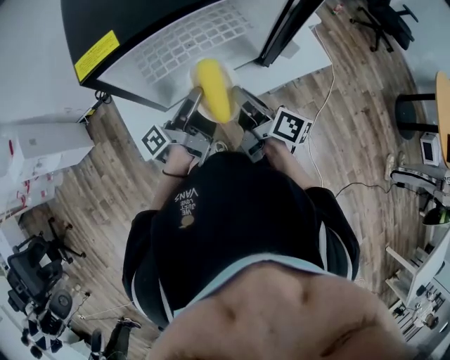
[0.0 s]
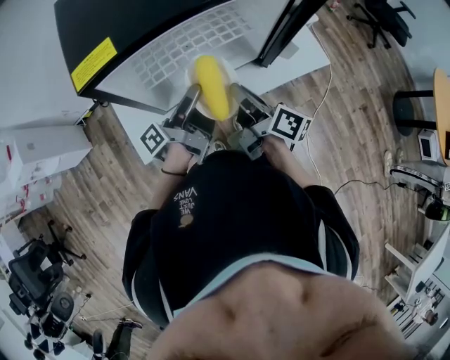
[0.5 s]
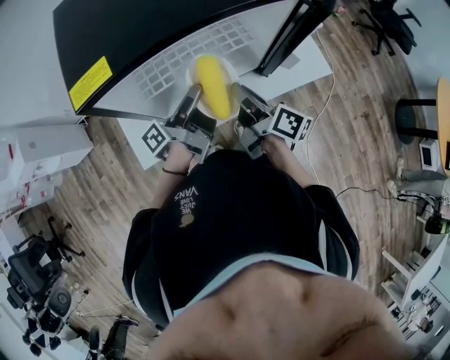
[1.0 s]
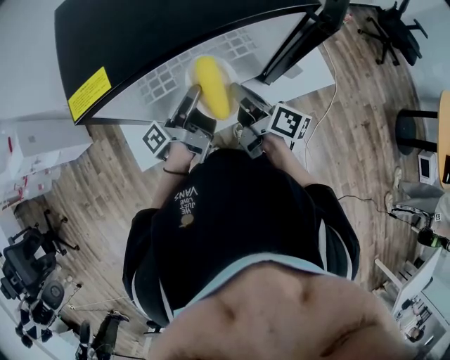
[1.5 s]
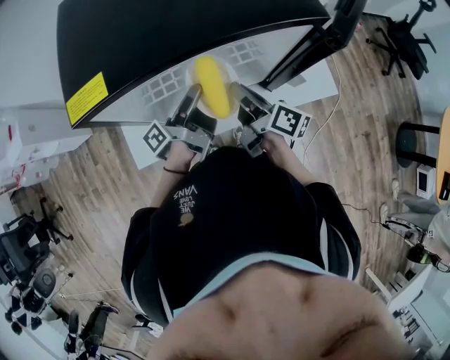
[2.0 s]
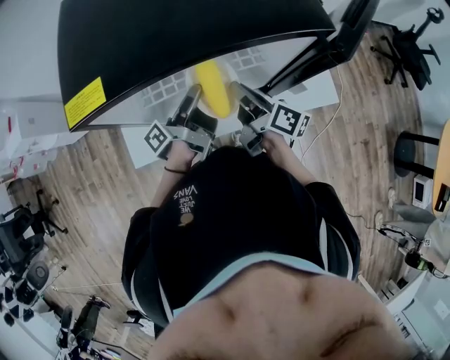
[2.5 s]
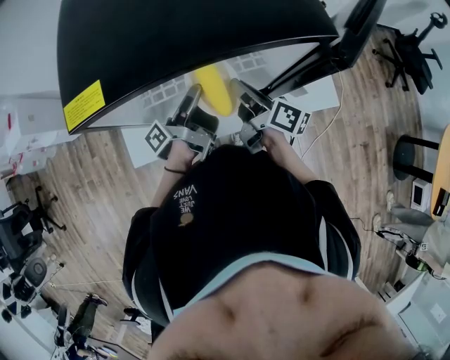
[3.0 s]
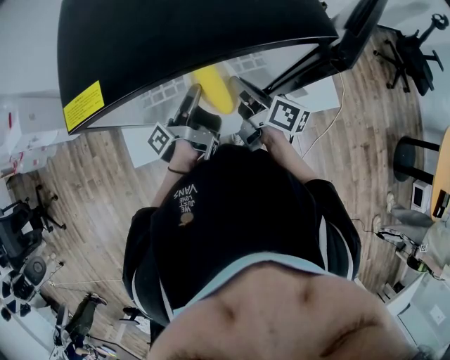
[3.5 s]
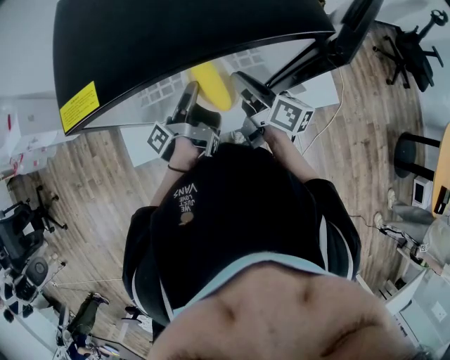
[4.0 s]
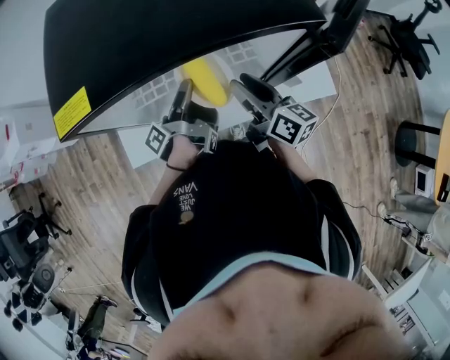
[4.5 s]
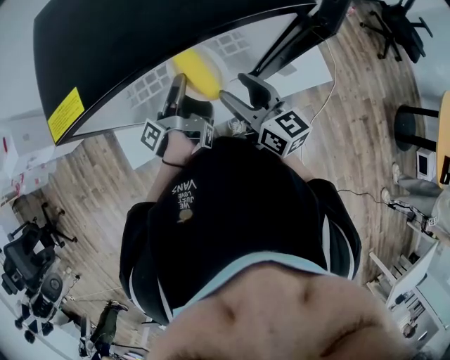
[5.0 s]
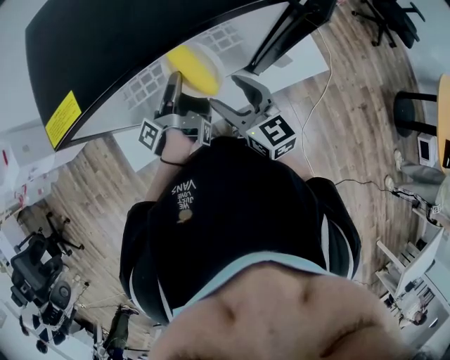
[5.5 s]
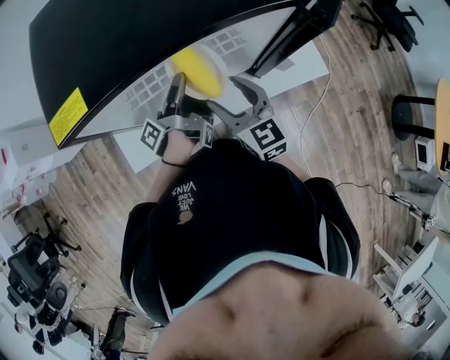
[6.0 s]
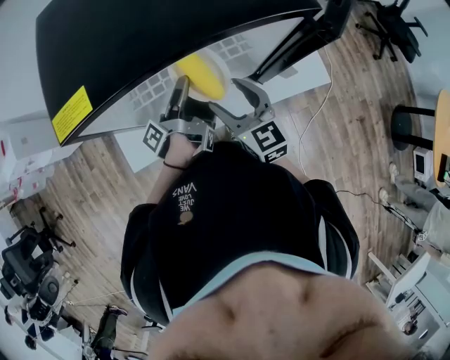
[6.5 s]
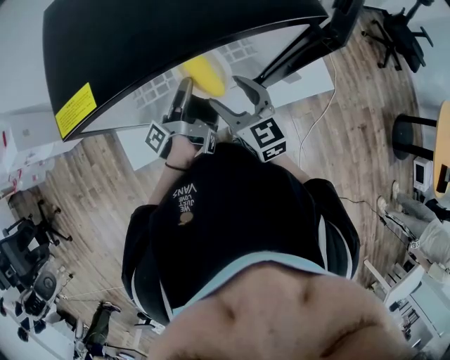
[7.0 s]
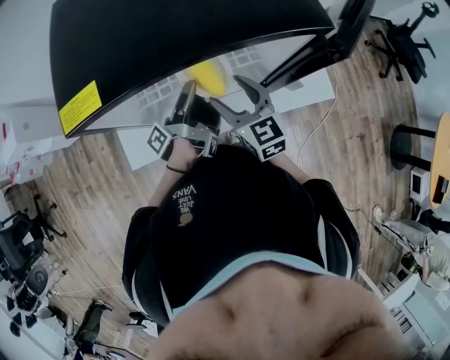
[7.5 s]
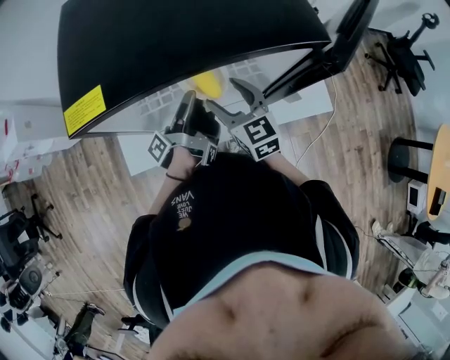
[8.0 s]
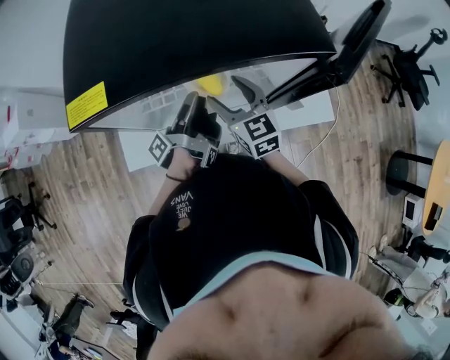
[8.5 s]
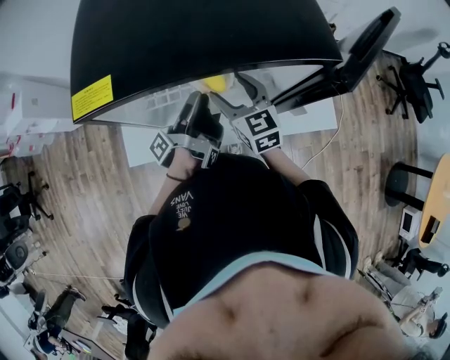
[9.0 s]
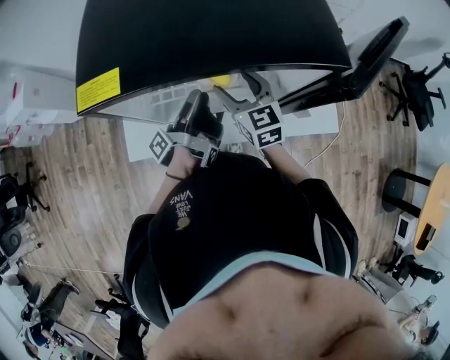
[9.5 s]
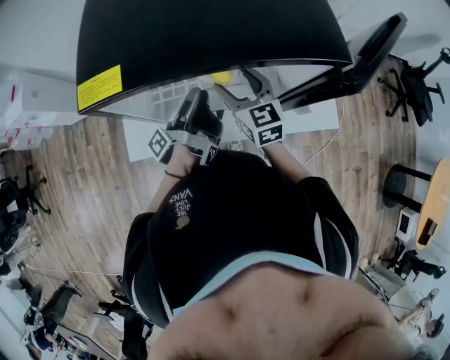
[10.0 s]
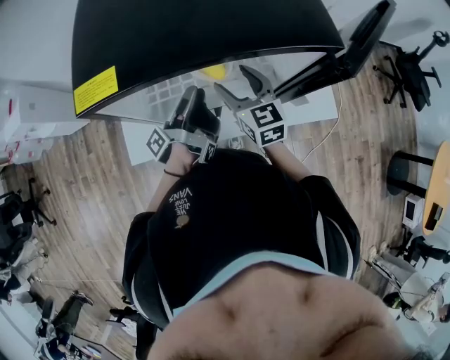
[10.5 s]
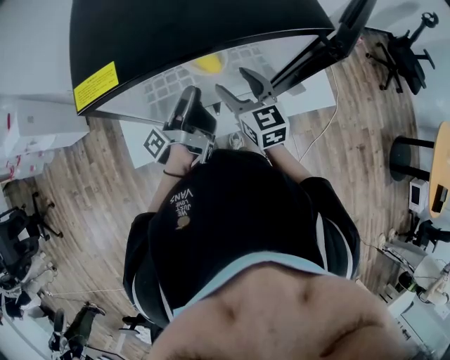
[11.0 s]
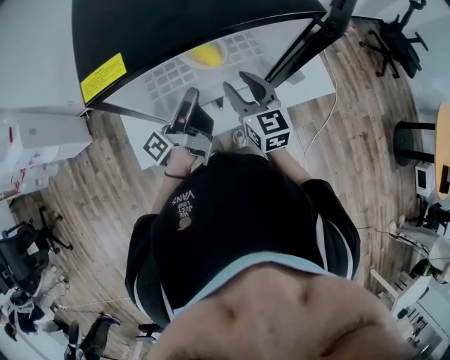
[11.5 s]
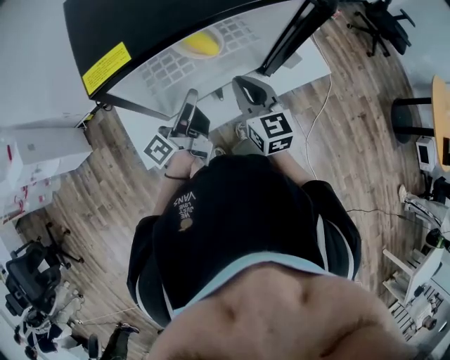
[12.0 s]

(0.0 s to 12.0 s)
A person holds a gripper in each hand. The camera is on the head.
0.0 s - 2.0 s: The right gripper changes place by some 10 cm.
4.0 s - 6.0 s: The right gripper moves about 10 cm, twists roughly 50 degrees counterclockwise, seen from behind, and opens.
6.0 s - 8.0 s: The right gripper ends up some 5 cm from where it was.
10.0 s - 12.0 s: The right gripper shifts by approximately 10 cm, turns by about 20 degrees, and closes.

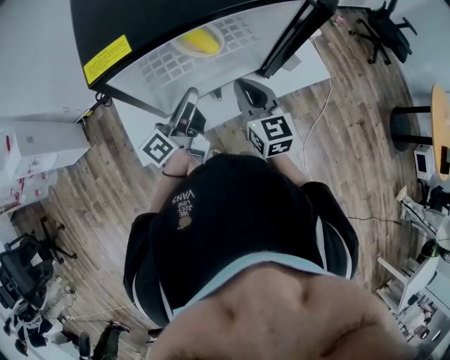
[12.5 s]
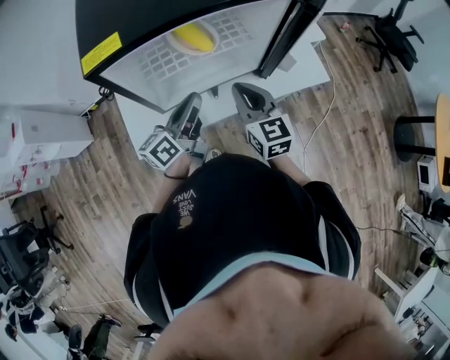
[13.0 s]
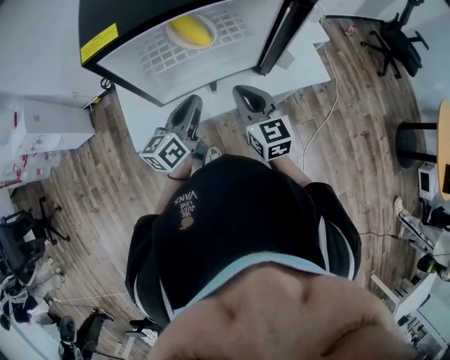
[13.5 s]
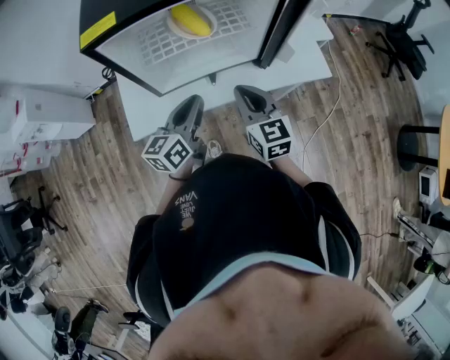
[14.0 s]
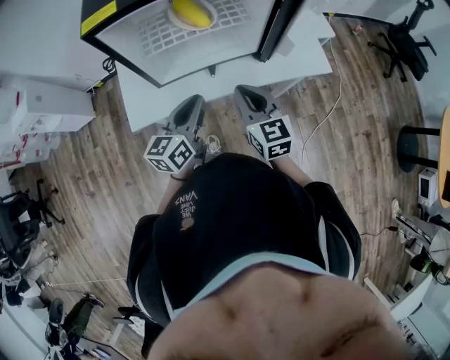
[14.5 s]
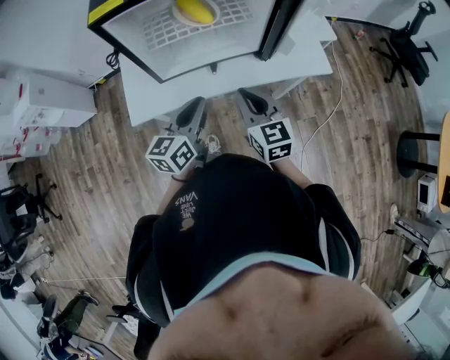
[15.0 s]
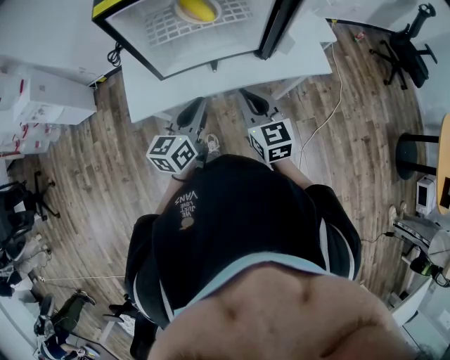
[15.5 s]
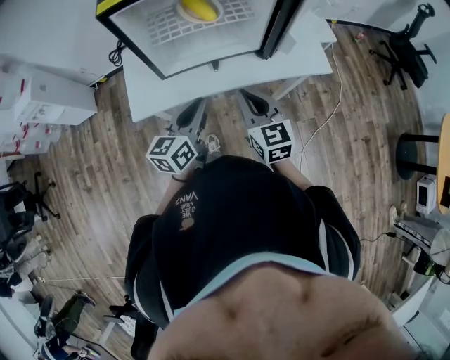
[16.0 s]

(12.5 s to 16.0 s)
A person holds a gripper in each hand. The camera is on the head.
12.5 s - 14.5 s: The right gripper ends up about 10 cm from where it was.

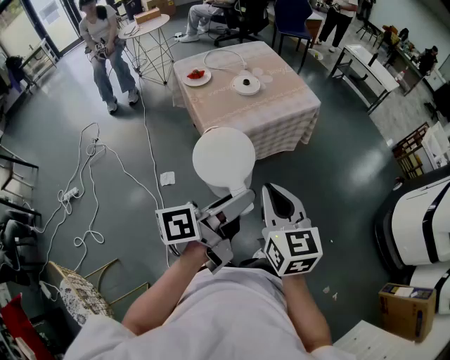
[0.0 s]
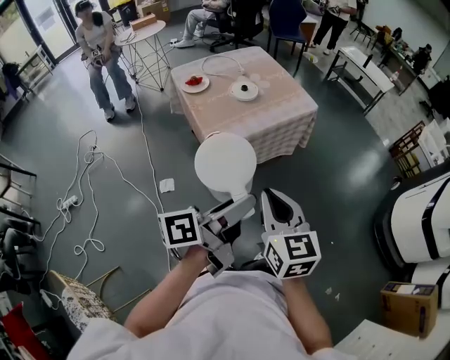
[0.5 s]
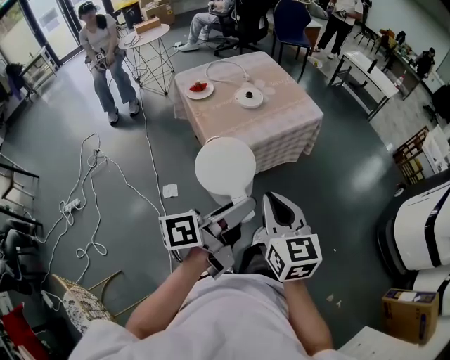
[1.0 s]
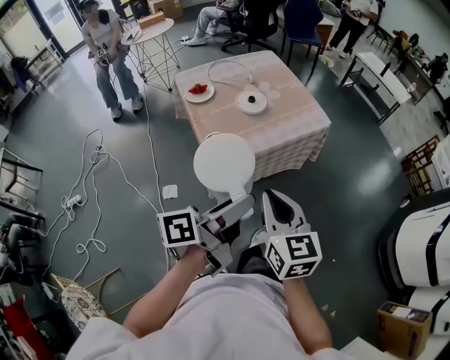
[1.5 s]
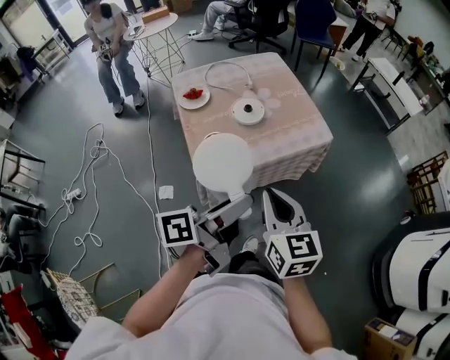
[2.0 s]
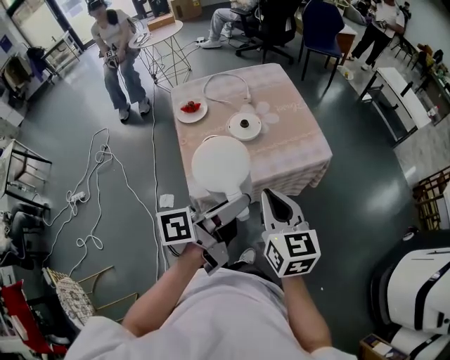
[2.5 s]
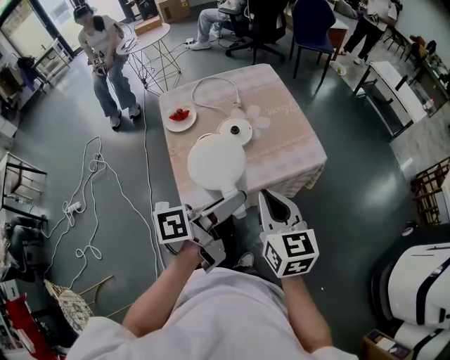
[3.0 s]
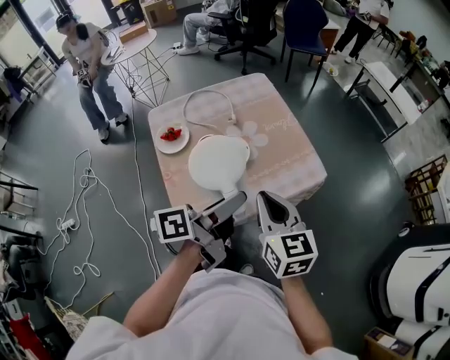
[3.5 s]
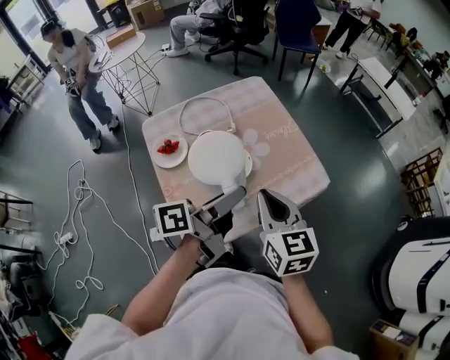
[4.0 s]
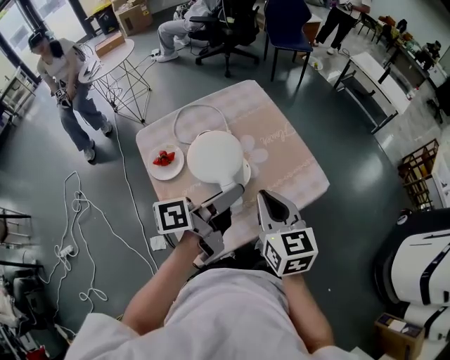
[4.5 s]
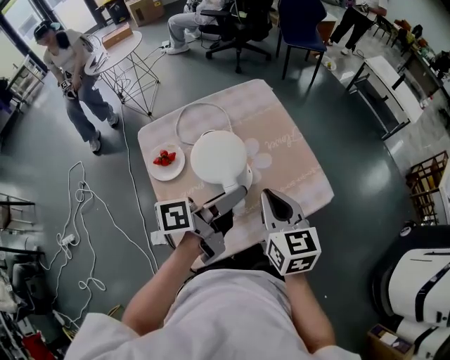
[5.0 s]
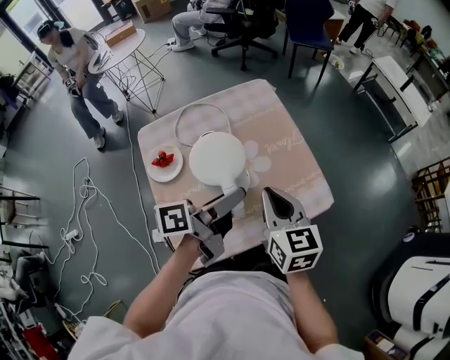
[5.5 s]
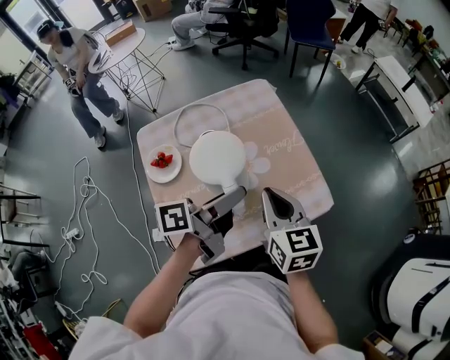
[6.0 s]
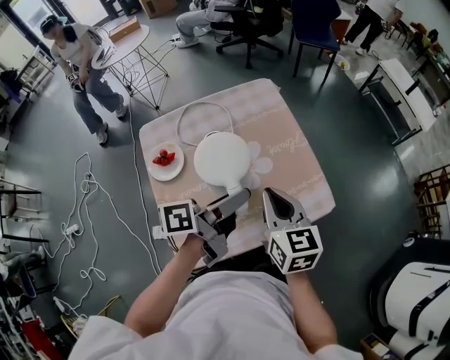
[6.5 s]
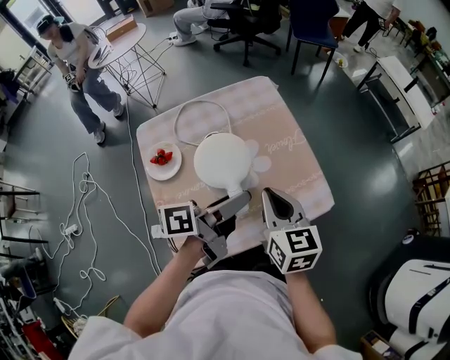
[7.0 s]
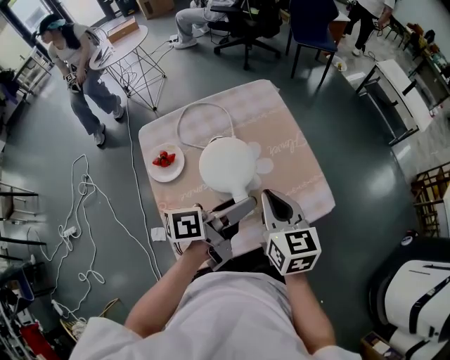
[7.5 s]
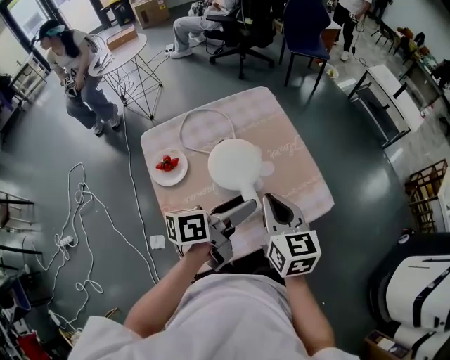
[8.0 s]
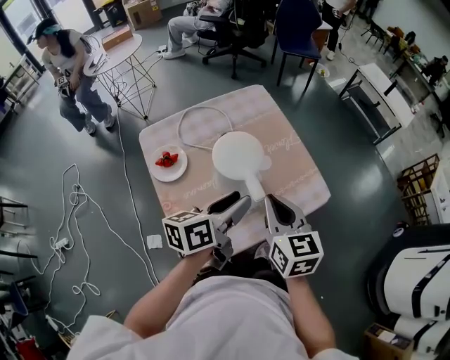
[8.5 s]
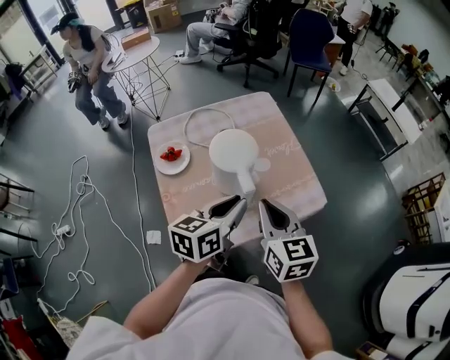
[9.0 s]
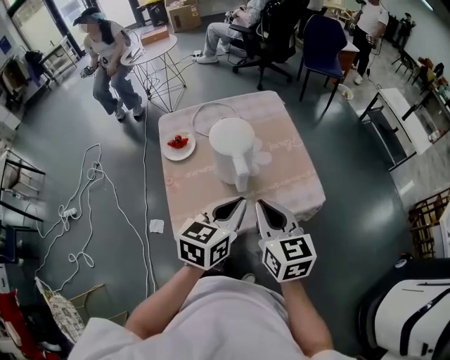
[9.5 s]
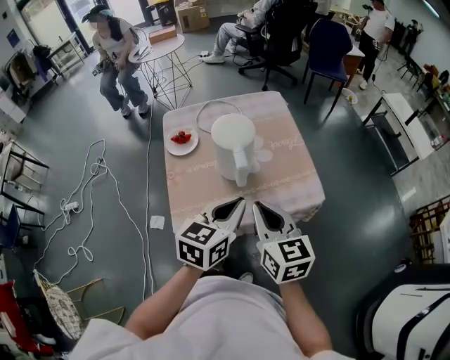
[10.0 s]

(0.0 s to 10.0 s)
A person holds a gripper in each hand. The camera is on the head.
0.0 s - 2.0 s: The grippers both shift forward by some 20 cm.
2.0 s - 4.0 s: Both grippers travel together forward, some 25 cm.
4.0 s - 6.0 s: Both grippers move forward, roughly 10 cm.
6.0 s - 8.0 s: The grippers move only a little.
8.0 s - 10.0 s: The left gripper moves backward and to the right, about 15 cm, turns by some 50 degrees, and closes. Meanwhile the right gripper shifts about 15 cm backward.

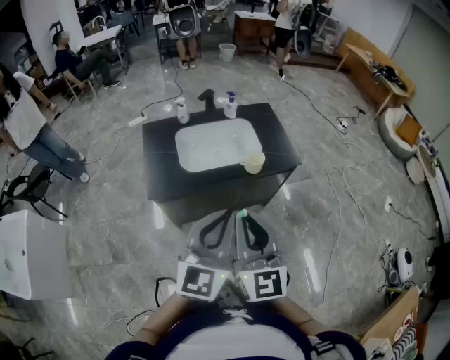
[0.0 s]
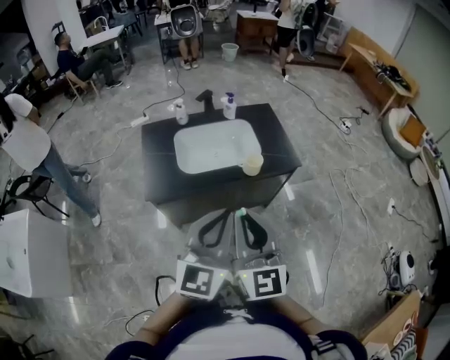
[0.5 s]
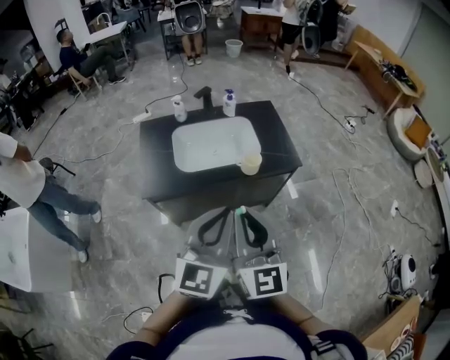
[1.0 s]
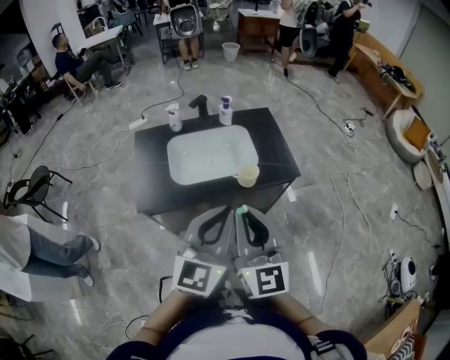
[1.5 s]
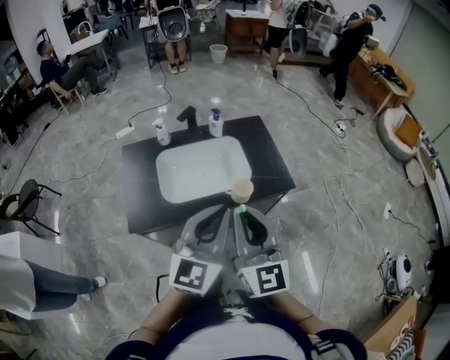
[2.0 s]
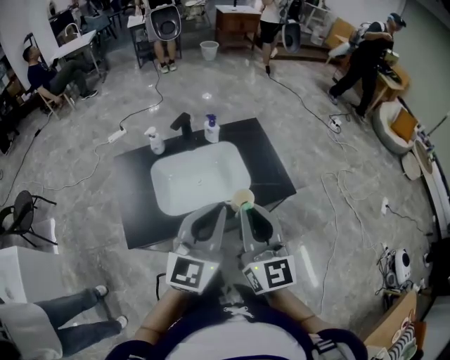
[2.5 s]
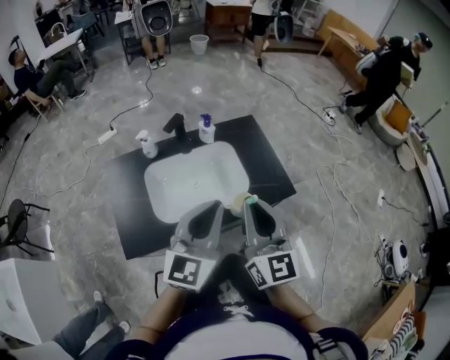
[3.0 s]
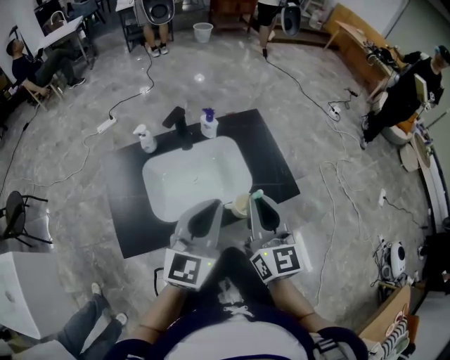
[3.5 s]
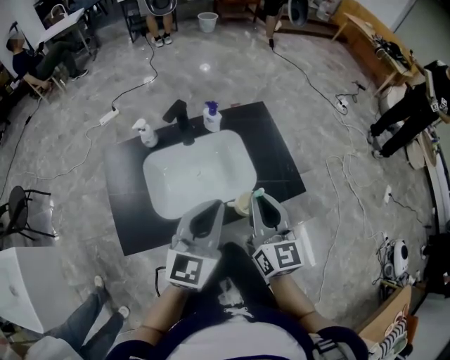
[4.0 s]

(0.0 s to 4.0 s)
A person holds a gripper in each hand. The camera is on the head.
0.0 s - 2.0 s: The two grippers go approximately 20 cm forward.
2.0 s - 4.0 s: The grippers both shift forward and downward by some 20 cm.
